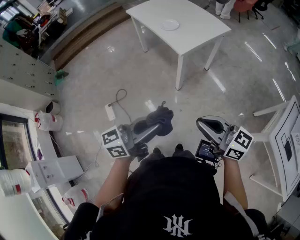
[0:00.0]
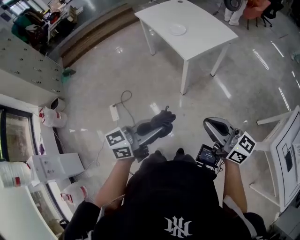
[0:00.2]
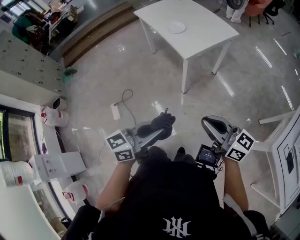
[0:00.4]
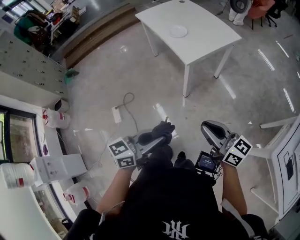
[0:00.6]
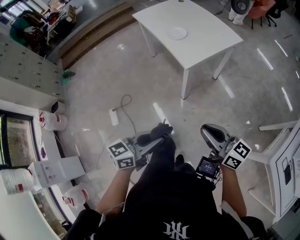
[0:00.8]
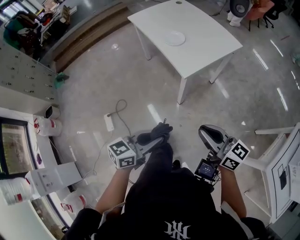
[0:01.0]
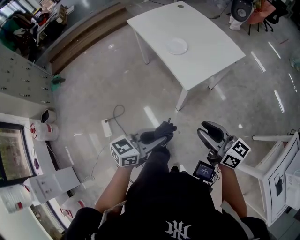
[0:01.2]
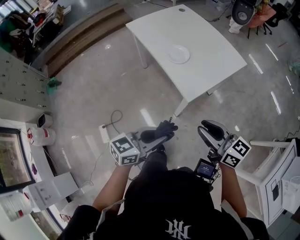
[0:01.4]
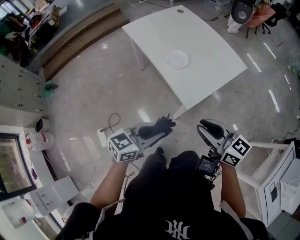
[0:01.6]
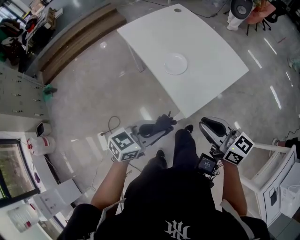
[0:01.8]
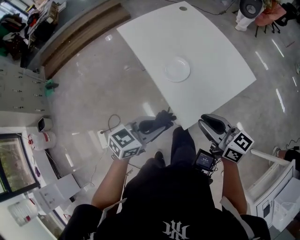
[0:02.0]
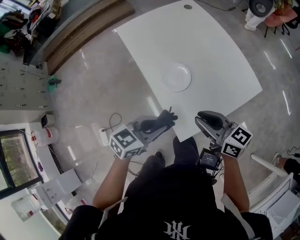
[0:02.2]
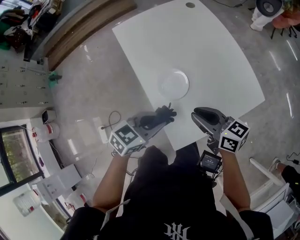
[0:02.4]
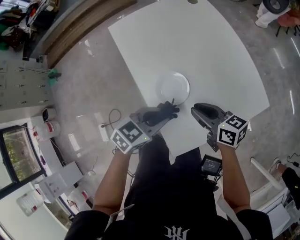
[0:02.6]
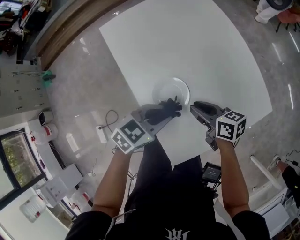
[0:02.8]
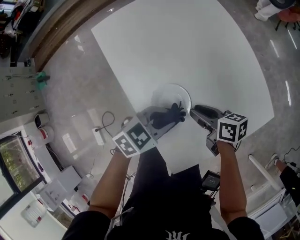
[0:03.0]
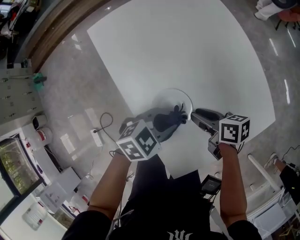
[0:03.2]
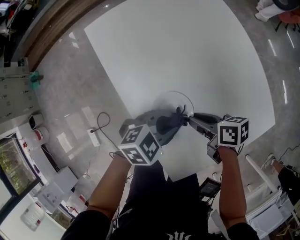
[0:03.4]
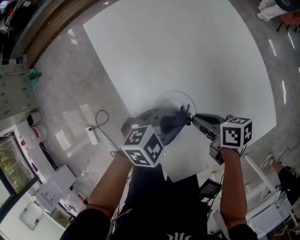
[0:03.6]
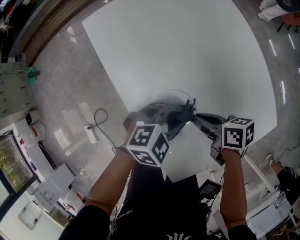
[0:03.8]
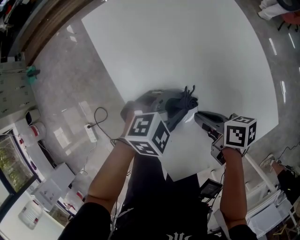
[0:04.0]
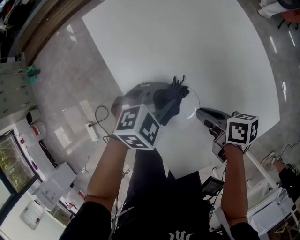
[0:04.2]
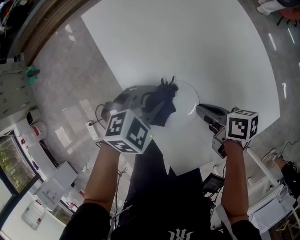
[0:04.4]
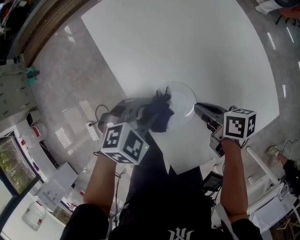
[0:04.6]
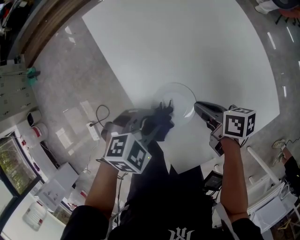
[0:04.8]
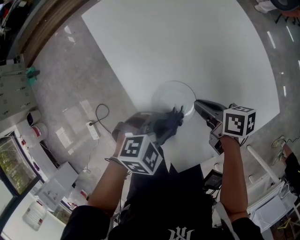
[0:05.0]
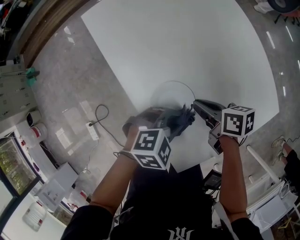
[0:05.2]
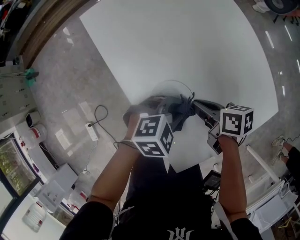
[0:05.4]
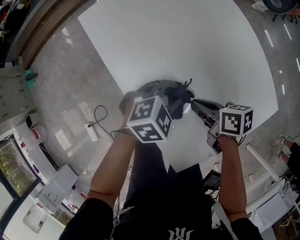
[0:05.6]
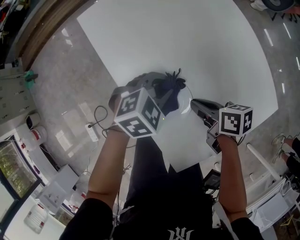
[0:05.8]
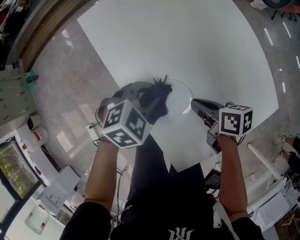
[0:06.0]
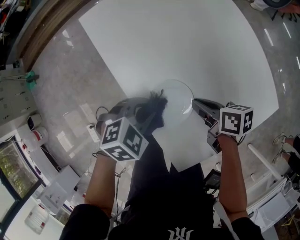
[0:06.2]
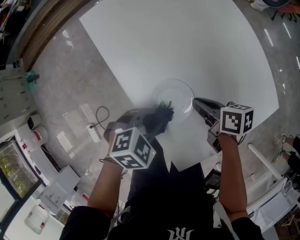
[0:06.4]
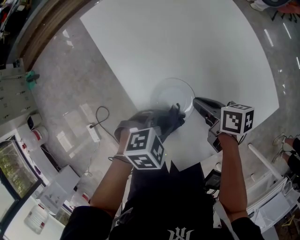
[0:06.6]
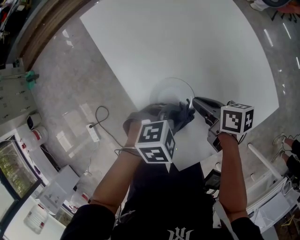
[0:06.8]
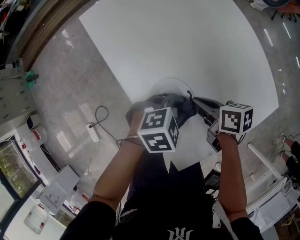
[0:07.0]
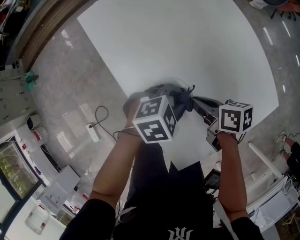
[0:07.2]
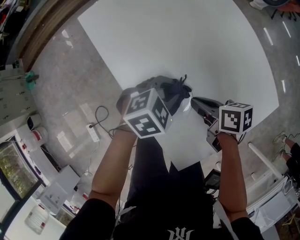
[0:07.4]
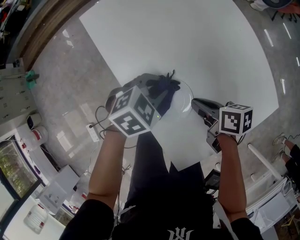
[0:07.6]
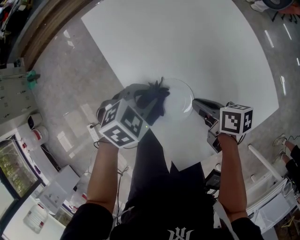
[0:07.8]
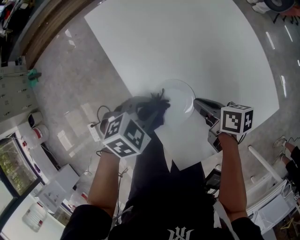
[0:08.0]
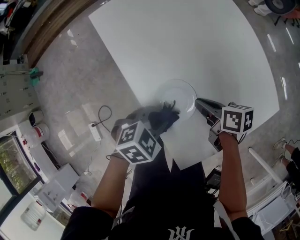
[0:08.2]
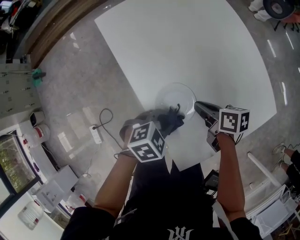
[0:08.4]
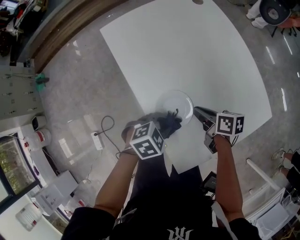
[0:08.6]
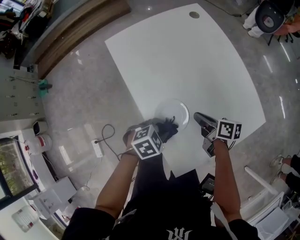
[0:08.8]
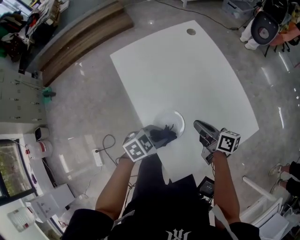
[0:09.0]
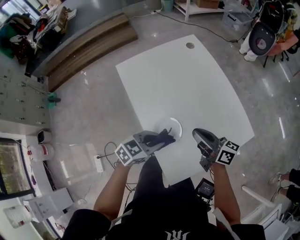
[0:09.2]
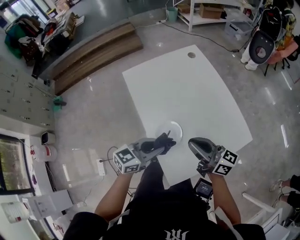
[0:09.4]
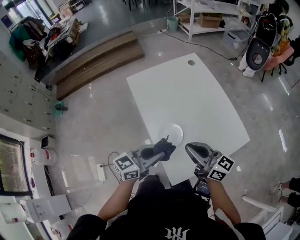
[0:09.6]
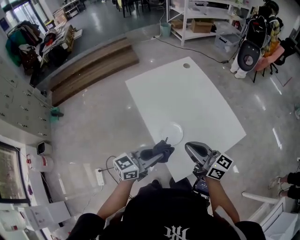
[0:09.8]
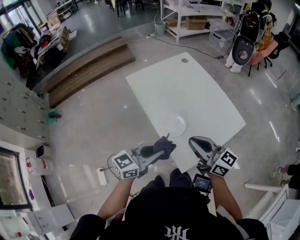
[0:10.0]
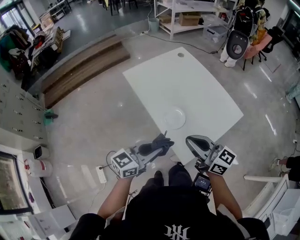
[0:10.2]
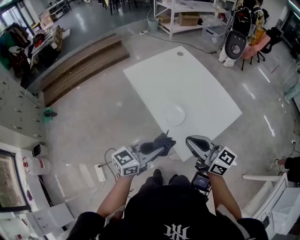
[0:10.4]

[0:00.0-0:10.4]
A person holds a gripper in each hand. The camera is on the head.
0:00.0 to 0:01.4: The left gripper moves forward and downward, roughly 30 cm, and changes its angle by some 20 degrees, while the right gripper travels forward by some 30 cm.
0:01.4 to 0:03.0: Both grippers are carried about 50 cm. The left gripper rotates roughly 30 degrees; the right gripper turns by approximately 40 degrees.
0:03.0 to 0:04.4: The left gripper shifts by roughly 10 cm, and changes its angle by approximately 30 degrees.
0:07.4 to 0:09.0: The right gripper is displaced upward by approximately 10 cm, and swivels approximately 20 degrees, while the left gripper ends up some 10 cm from where it was.
0:09.0 to 0:10.4: The left gripper travels upward and backward by some 30 cm, and points its fingers roughly 40 degrees further upward. Meanwhile the right gripper heads backward and upward, covering about 35 cm, and rotates about 40 degrees.

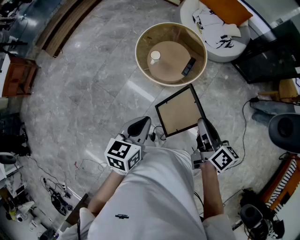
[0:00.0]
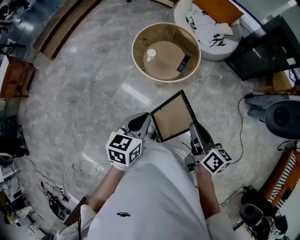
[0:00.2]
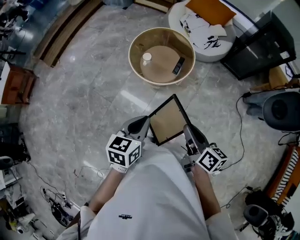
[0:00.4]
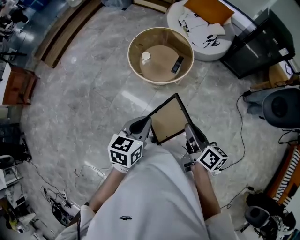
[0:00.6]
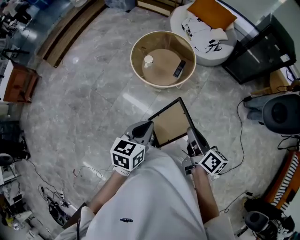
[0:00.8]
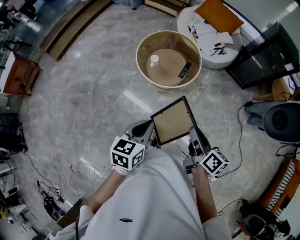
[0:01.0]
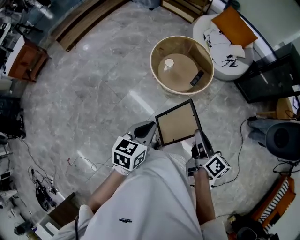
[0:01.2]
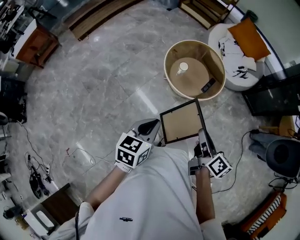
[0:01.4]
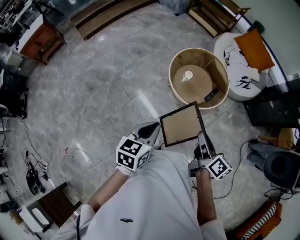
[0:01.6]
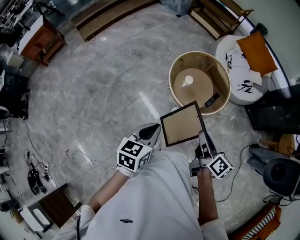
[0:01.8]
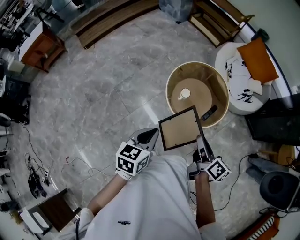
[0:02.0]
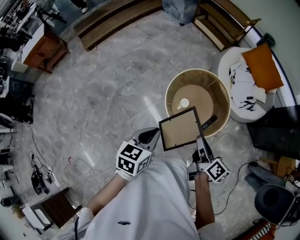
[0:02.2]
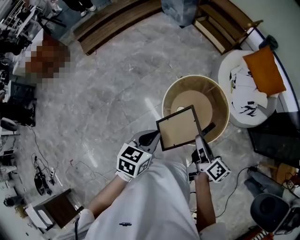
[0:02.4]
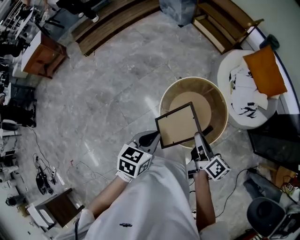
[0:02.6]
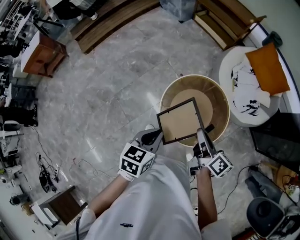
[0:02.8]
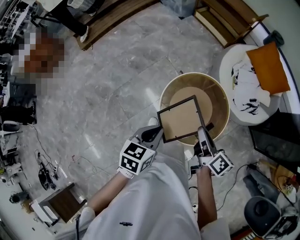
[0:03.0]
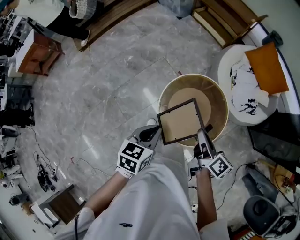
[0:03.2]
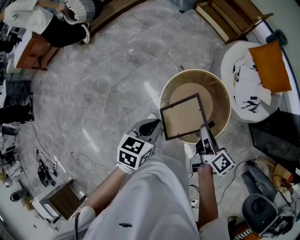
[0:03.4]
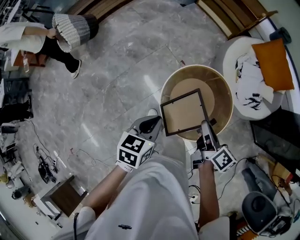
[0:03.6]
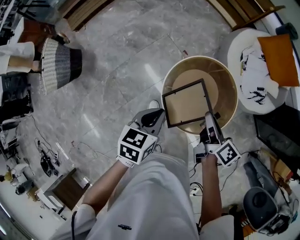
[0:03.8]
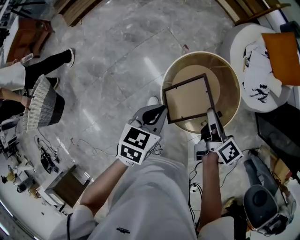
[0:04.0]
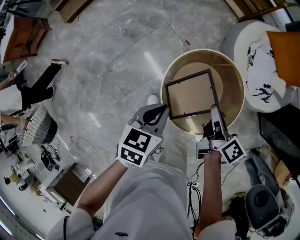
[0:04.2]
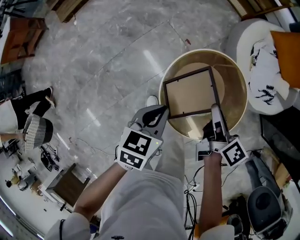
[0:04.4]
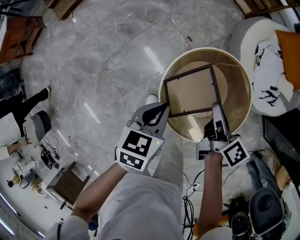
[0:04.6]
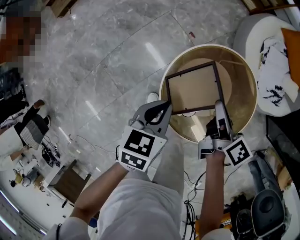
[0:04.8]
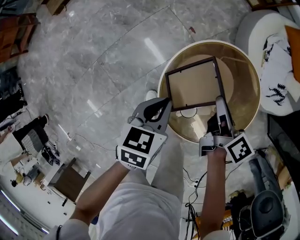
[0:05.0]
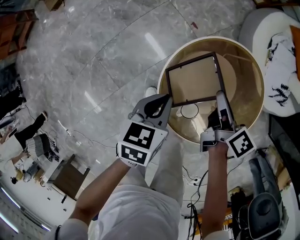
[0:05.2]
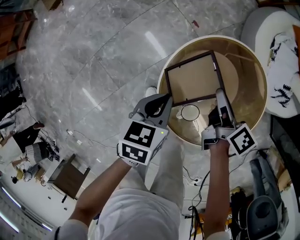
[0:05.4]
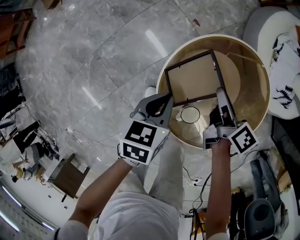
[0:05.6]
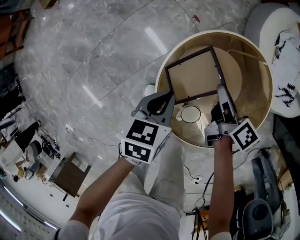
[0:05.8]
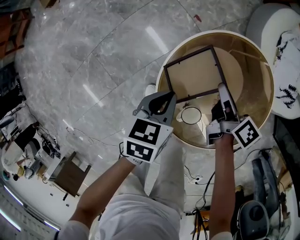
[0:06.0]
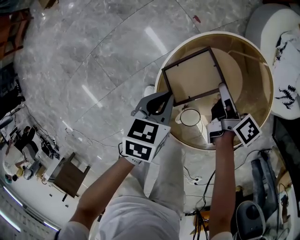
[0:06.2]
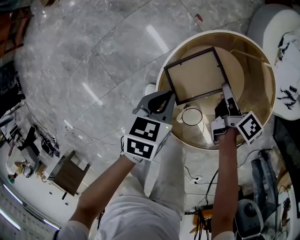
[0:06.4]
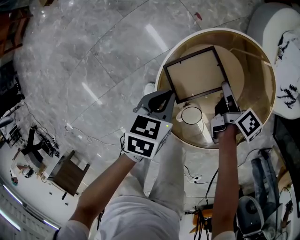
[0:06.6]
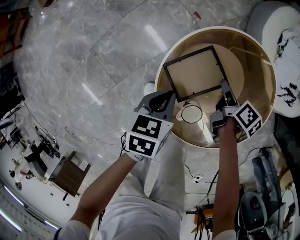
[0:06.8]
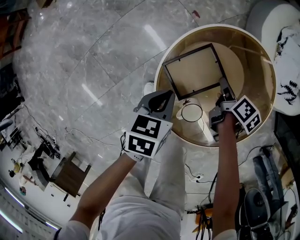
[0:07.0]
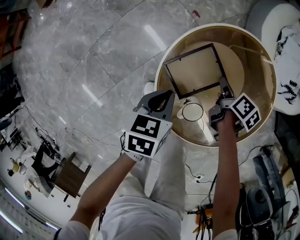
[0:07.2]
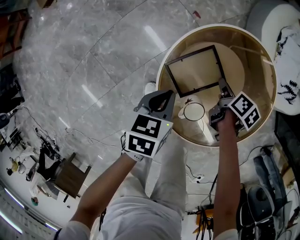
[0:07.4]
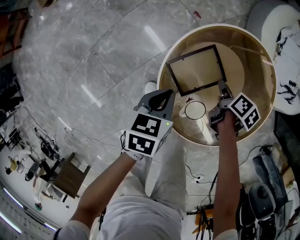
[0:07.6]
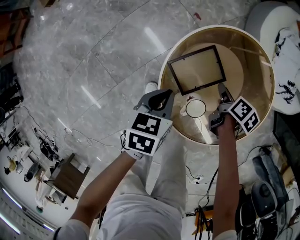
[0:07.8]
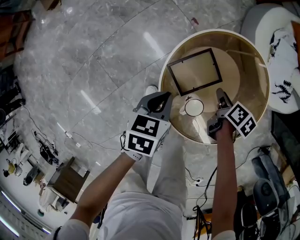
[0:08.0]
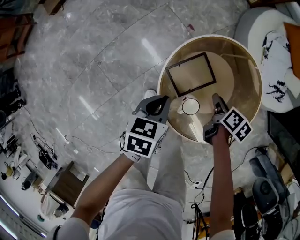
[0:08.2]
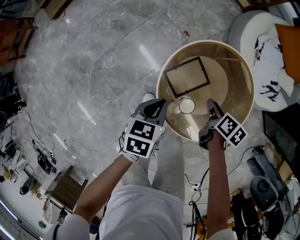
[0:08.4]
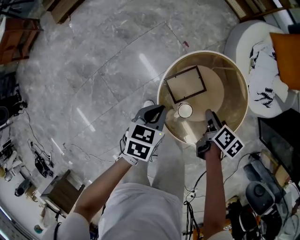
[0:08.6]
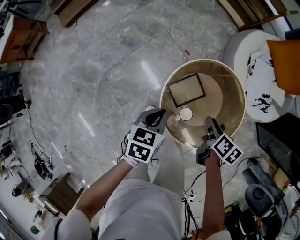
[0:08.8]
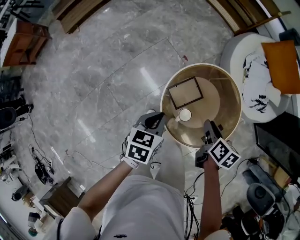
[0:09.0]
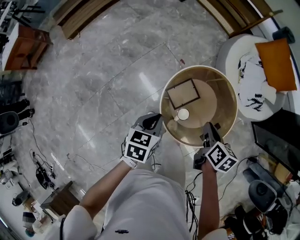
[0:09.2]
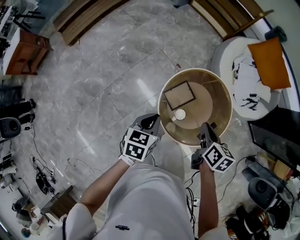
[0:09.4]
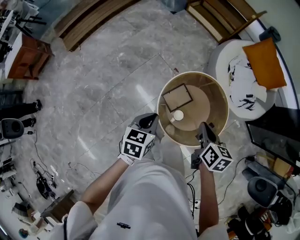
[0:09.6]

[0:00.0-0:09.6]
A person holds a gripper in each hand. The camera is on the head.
0:00.0 to 0:01.6: The right gripper heads to the left, covering approximately 10 cm; the left gripper heads to the left and backward, covering some 10 cm.
0:01.6 to 0:03.2: Both grippers travel together forward, approximately 40 cm.
0:03.2 to 0:04.8: Both grippers move downward and forward, about 25 cm.
0:04.8 to 0:06.4: The two grippers go roughly 20 cm downward.
0:06.4 to 0:08.0: The right gripper travels backward by roughly 5 cm, and turns by approximately 20 degrees.
0:08.0 to 0:09.6: The two grippers go approximately 35 cm upward. The right gripper changes its angle by roughly 30 degrees, and closes its fingers.

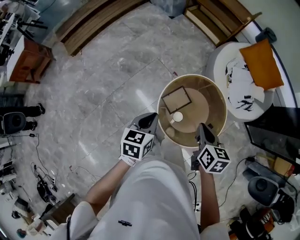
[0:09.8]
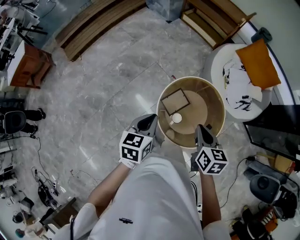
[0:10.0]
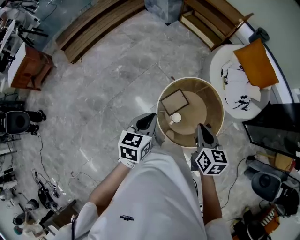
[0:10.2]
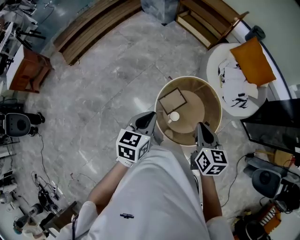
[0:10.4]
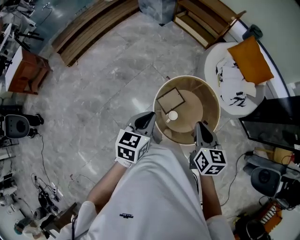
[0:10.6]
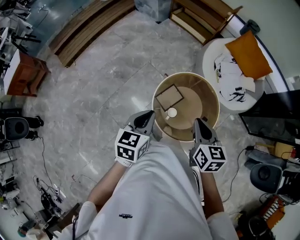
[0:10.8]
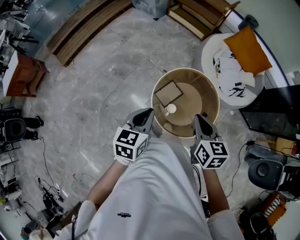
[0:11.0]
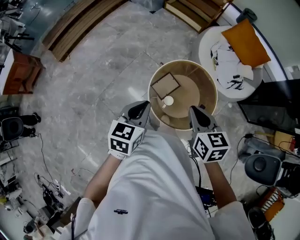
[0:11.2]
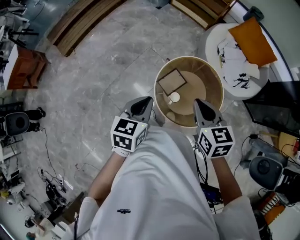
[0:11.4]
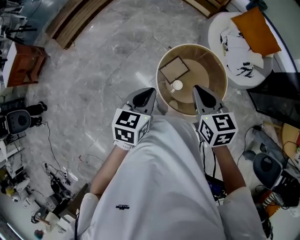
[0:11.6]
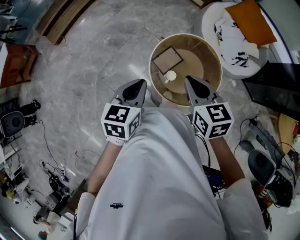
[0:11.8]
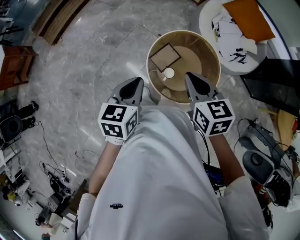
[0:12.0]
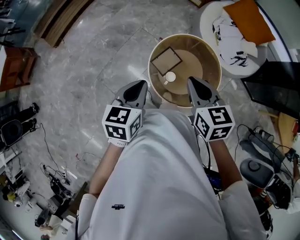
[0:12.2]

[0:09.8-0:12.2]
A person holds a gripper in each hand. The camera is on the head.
0:09.8 to 0:11.0: The two grippers go some 5 cm upward.
0:11.0 to 0:12.2: The grippers stay close to where they were, moving slightly.

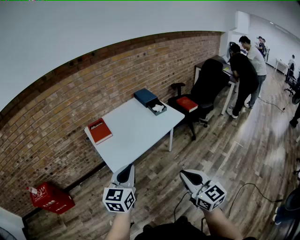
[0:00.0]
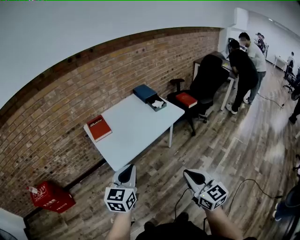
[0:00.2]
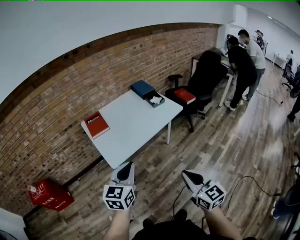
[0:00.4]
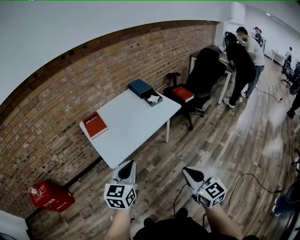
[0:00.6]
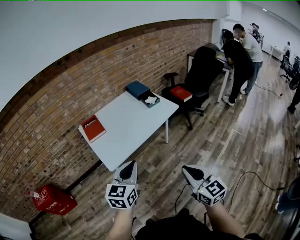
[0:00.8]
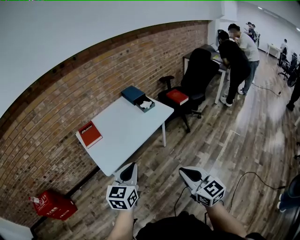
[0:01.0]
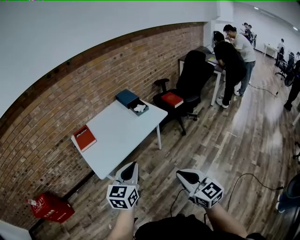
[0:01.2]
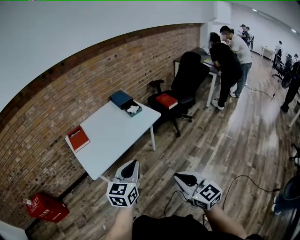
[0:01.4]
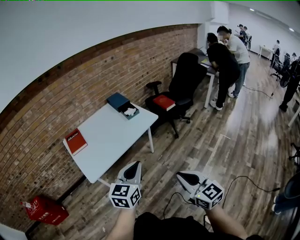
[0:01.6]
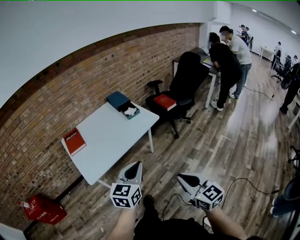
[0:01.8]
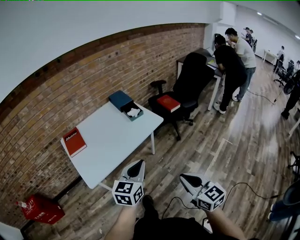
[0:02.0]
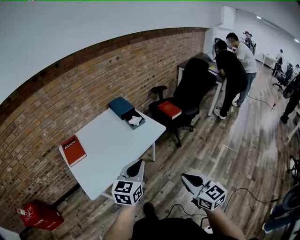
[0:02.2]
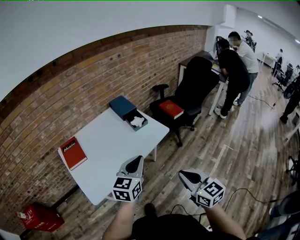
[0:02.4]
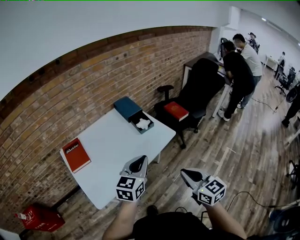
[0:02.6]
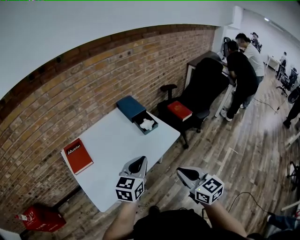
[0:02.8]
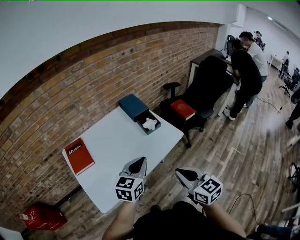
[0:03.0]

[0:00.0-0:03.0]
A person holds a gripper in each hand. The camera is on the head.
0:00.0 to 0:01.6: Both grippers move to the right, some 20 cm.
0:01.6 to 0:03.0: The grippers both shift forward by some 30 cm.
